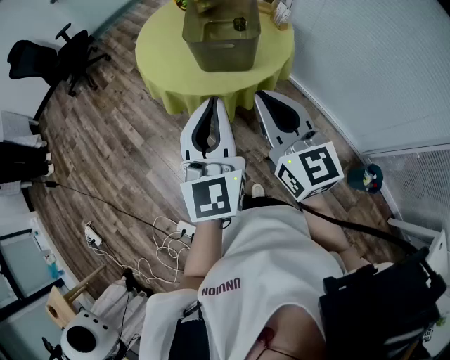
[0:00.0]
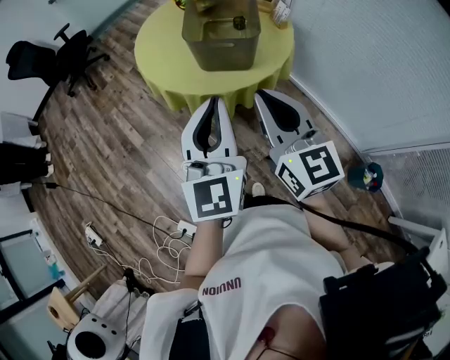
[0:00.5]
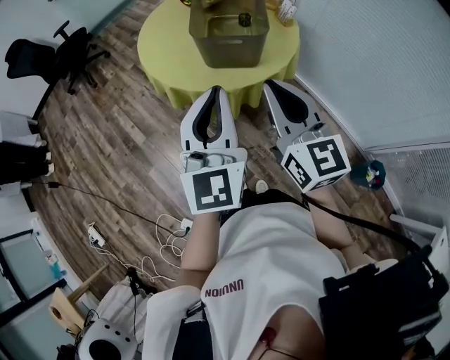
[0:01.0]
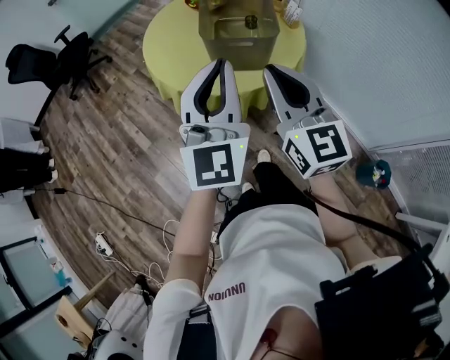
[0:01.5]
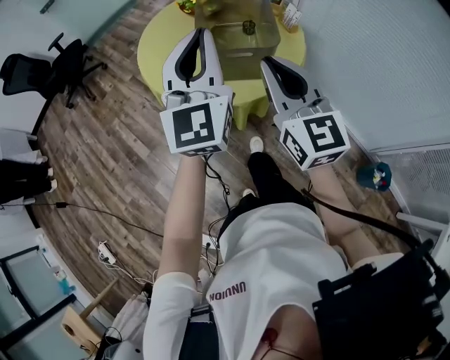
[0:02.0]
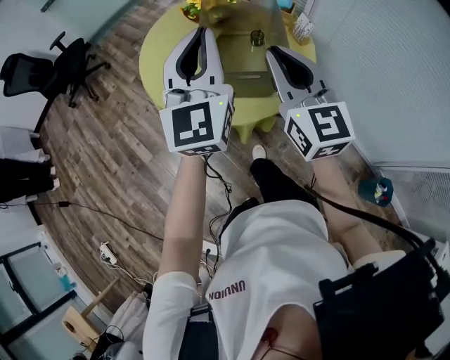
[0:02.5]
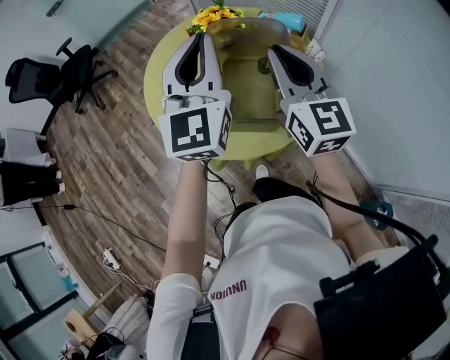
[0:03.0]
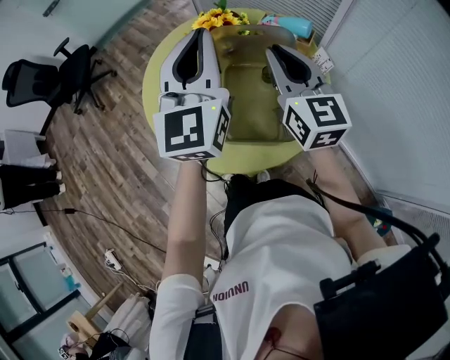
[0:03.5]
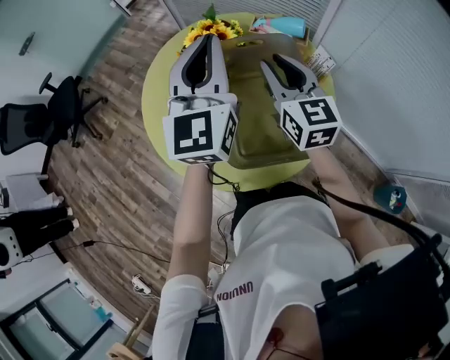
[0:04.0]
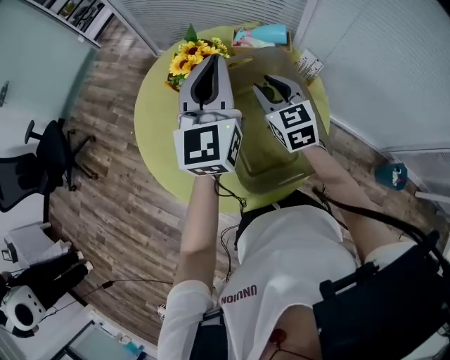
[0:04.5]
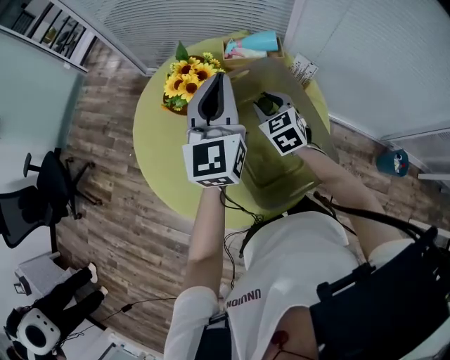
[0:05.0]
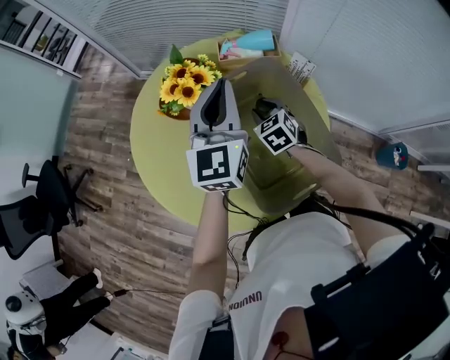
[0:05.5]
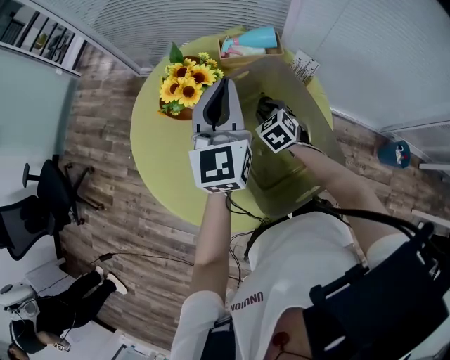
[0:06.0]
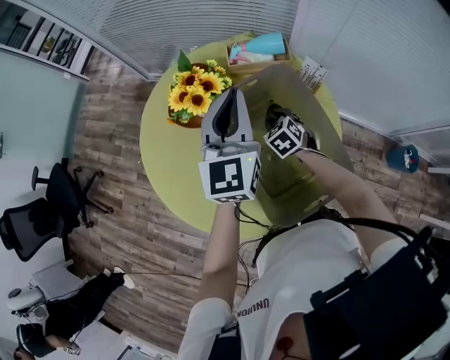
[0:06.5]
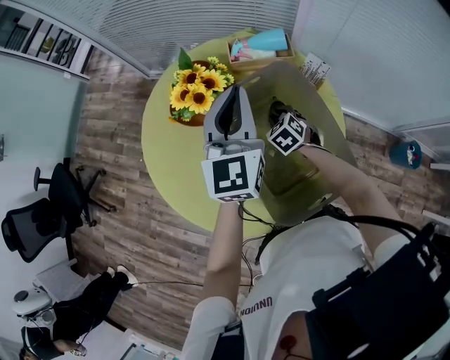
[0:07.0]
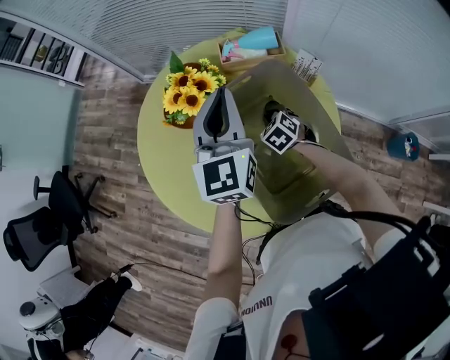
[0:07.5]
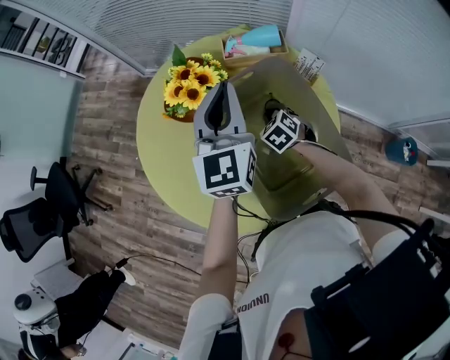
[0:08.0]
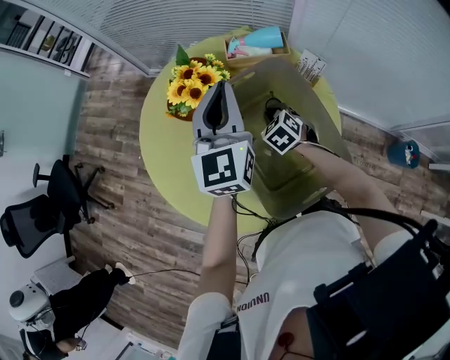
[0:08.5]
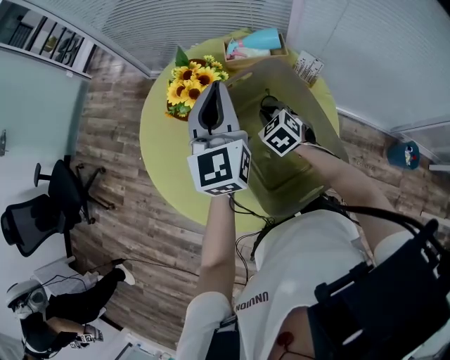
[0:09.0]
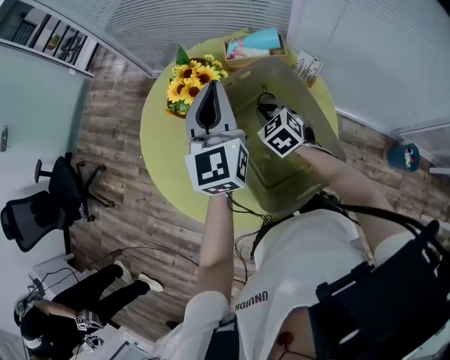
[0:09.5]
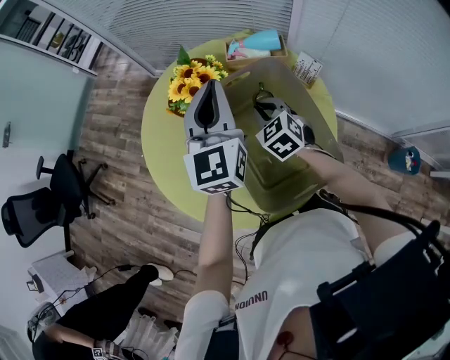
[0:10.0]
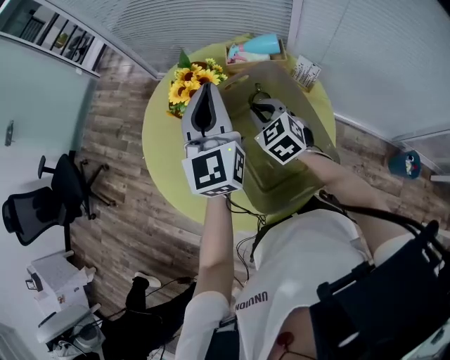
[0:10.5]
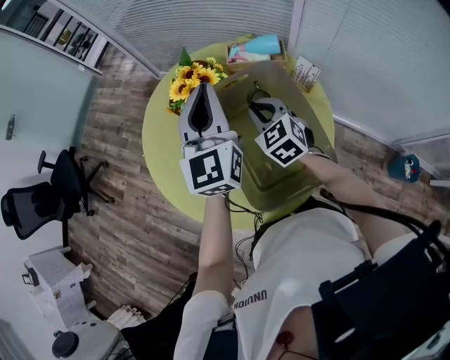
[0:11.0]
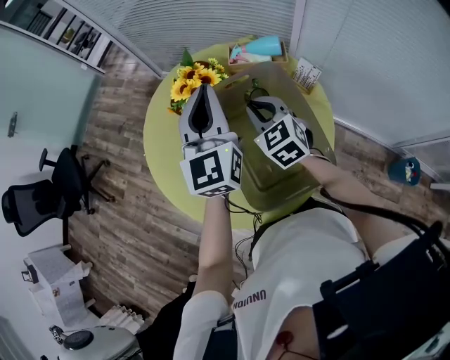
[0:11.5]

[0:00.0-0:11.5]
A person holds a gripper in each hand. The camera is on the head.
0.0 to 2.0 s: Both grippers travel together forward, roughly 15 cm.
2.0 to 4.0 s: Both grippers travel together forward, approximately 30 cm. The right gripper opens up.
4.0 to 6.0 s: The right gripper moves downward, approximately 25 cm, and tips its fingers downward by approximately 40 degrees. The left gripper is displaced downward and forward by roughly 10 cm, and turns by some 20 degrees.
6.0 to 7.5 s: The grippers make only small movements.
7.5 to 9.5 s: The right gripper moves upward, some 10 cm.
9.5 to 11.5 s: The right gripper travels upward by some 10 cm.

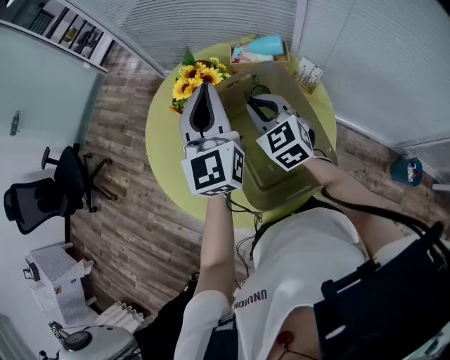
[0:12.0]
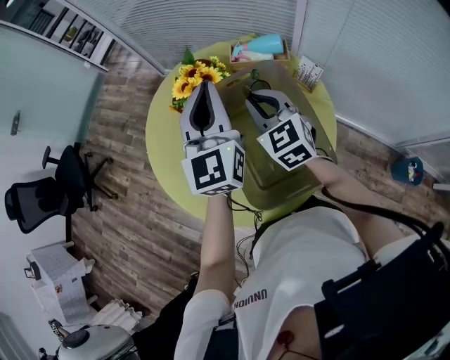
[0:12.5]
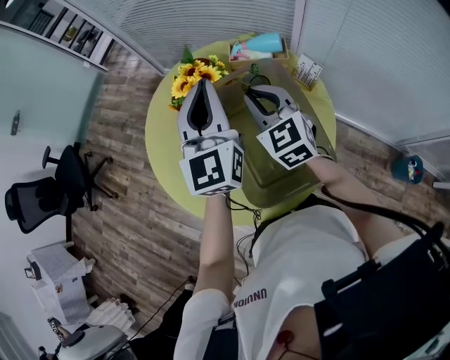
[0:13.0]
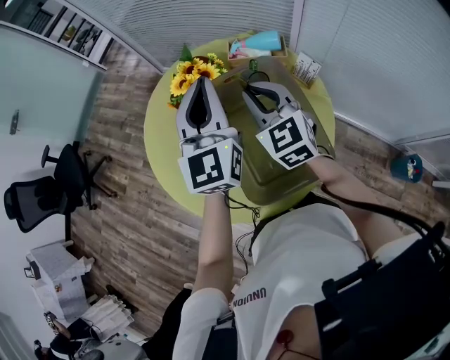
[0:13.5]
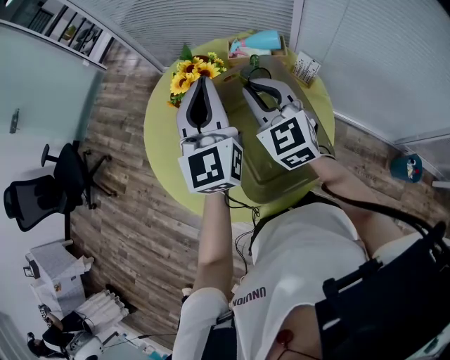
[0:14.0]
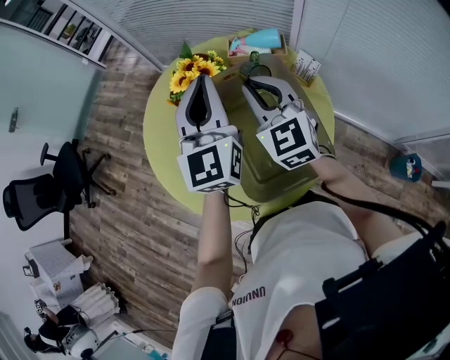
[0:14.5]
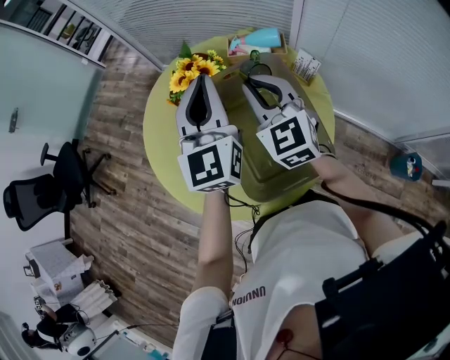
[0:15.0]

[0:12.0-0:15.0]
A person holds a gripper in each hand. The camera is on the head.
12.0 to 13.5 s: The right gripper goes approximately 5 cm upward.
13.5 to 15.0 s: There are only small adjustments of the grippers.

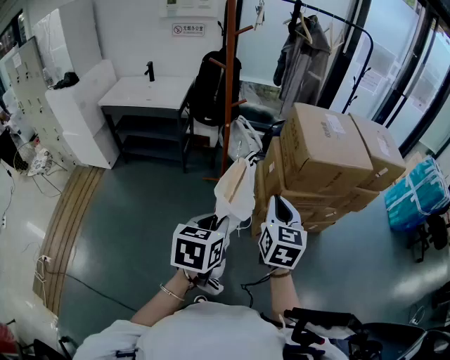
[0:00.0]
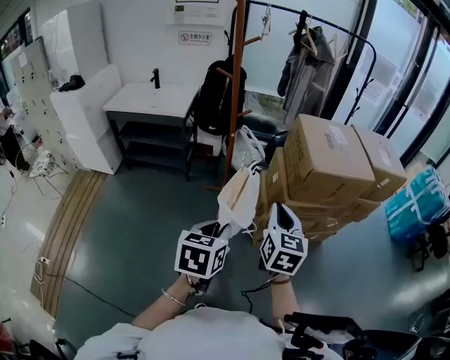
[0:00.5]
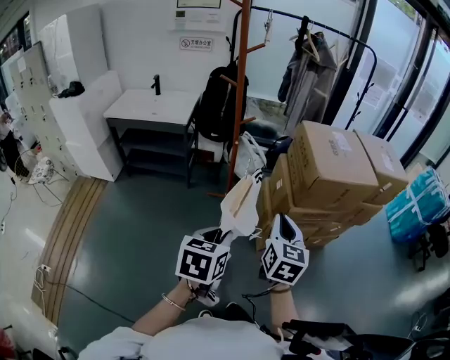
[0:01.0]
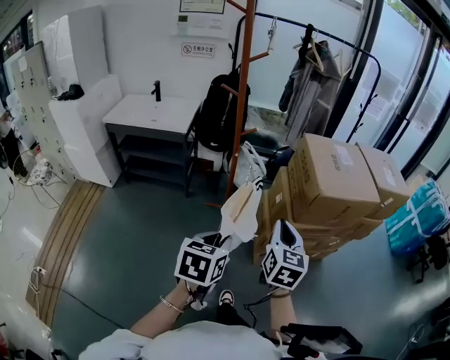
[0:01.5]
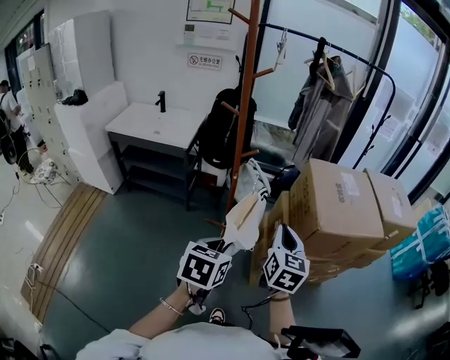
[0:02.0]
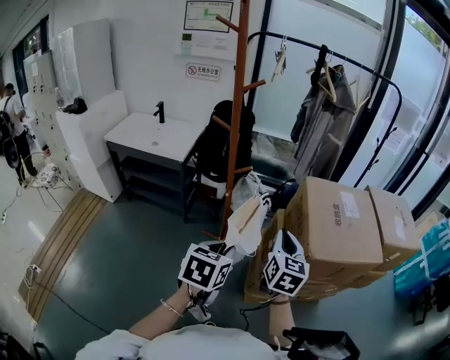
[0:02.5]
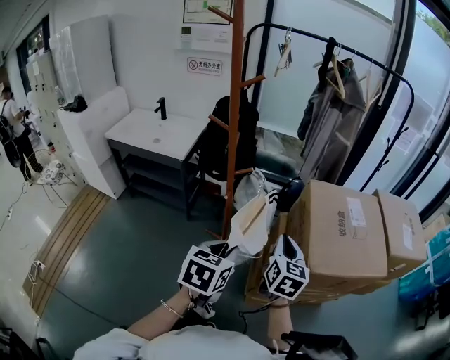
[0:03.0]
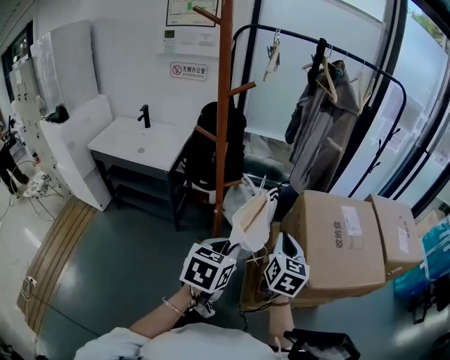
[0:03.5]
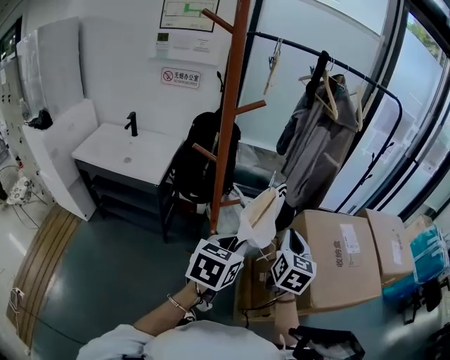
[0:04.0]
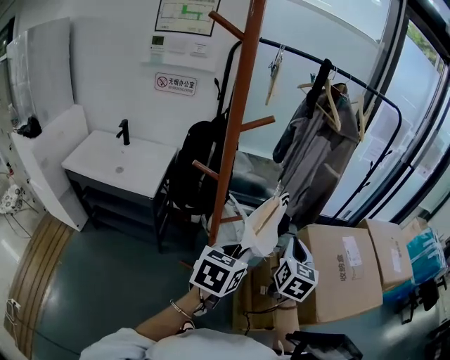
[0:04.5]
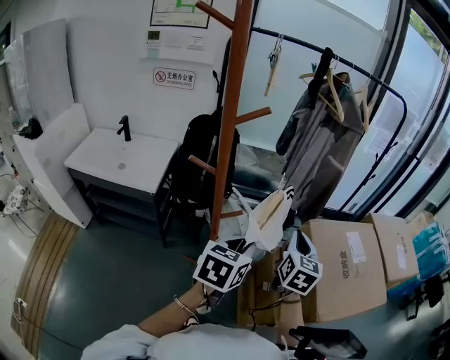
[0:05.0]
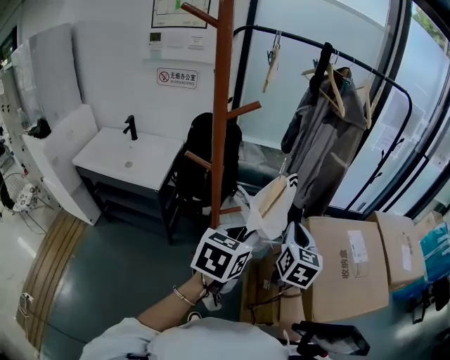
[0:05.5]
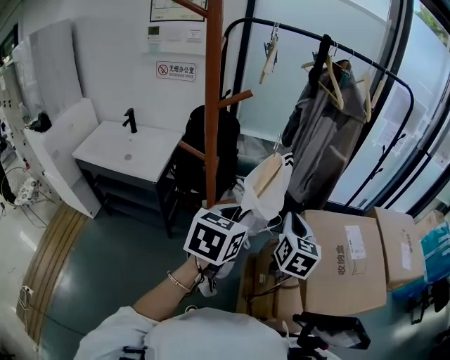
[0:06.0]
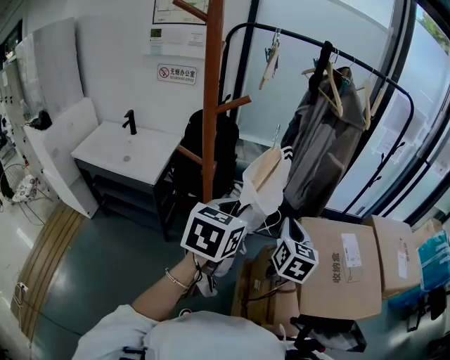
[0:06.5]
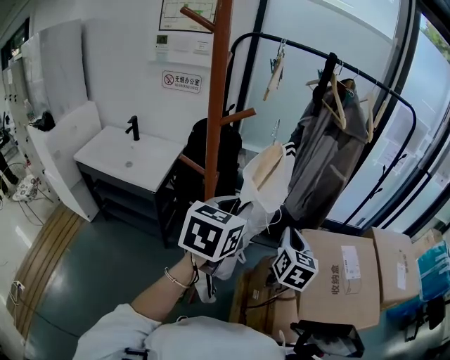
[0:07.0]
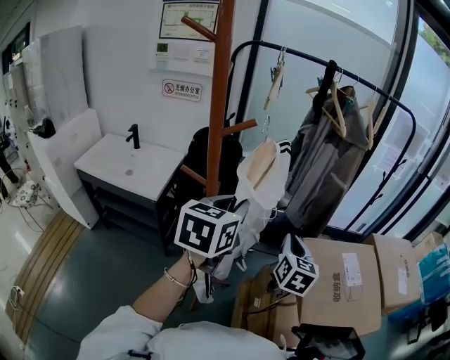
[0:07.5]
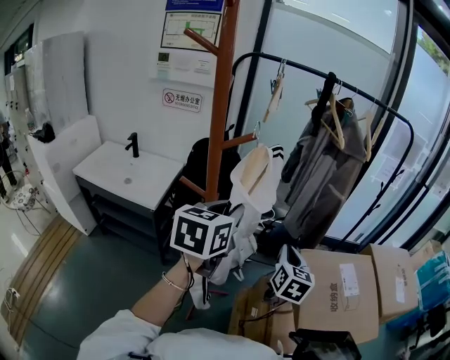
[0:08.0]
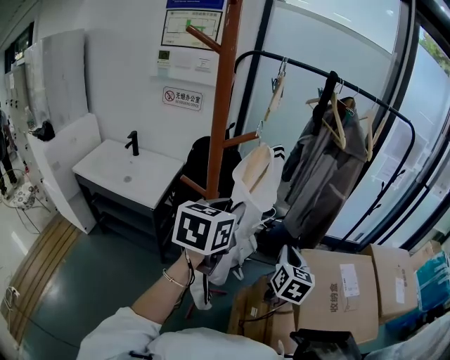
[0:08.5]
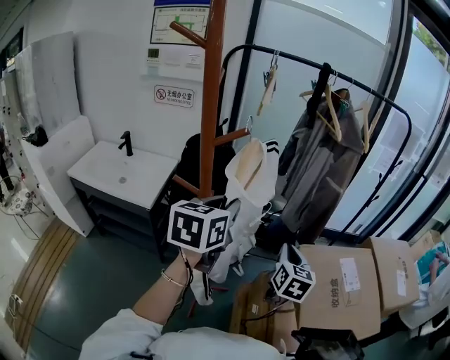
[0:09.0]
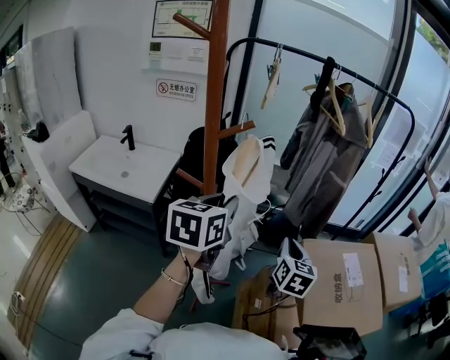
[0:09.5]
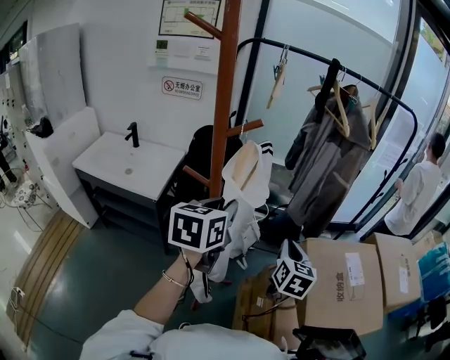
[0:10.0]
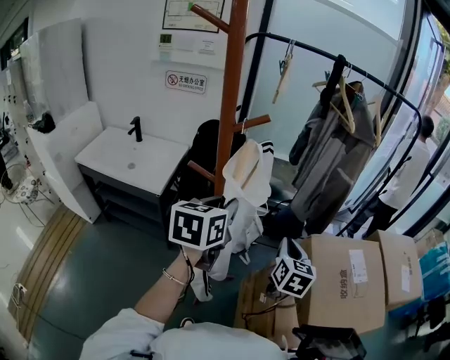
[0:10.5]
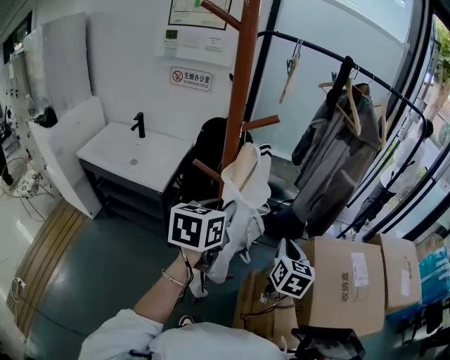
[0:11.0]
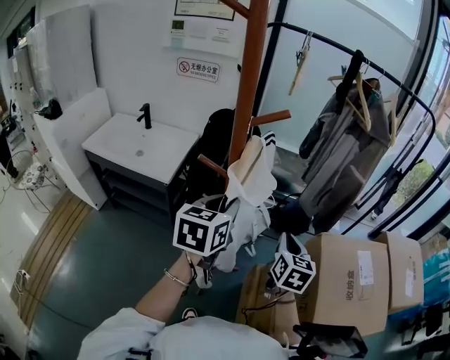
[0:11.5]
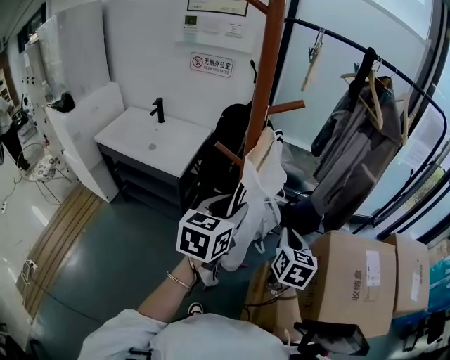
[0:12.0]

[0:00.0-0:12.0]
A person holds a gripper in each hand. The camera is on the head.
0.0 to 2.0 s: The two grippers go some 15 cm forward.
2.0 to 4.0 s: Both grippers travel together forward, approximately 25 cm.
4.0 to 6.0 s: Both grippers move forward, some 10 cm.
6.0 to 8.0 s: The left gripper travels upward, to the left and forward by roughly 10 cm.
8.0 to 10.0 s: The grippers stay close to where they were, moving slightly.
10.0 to 12.0 s: The left gripper heads downward, covering some 5 cm; the right gripper moves to the left, about 5 cm.

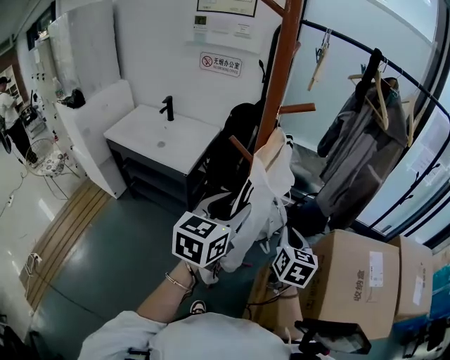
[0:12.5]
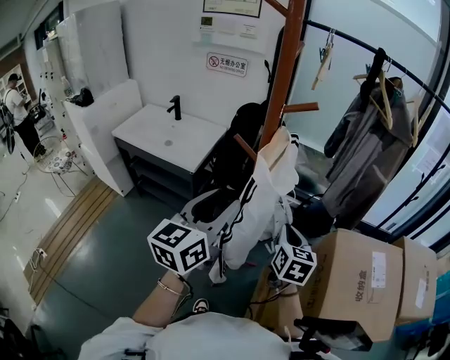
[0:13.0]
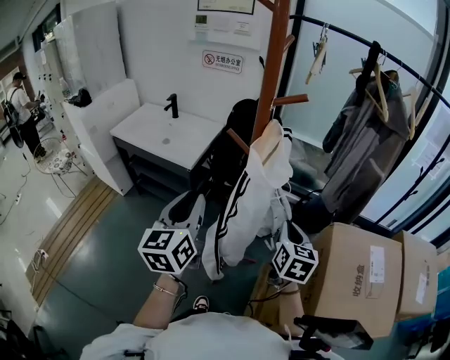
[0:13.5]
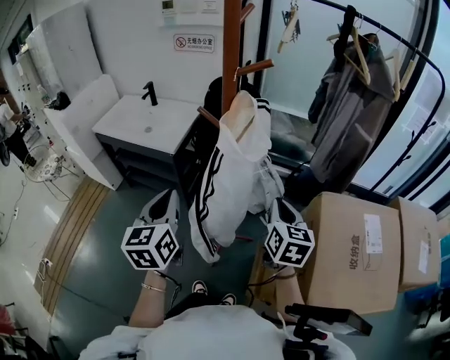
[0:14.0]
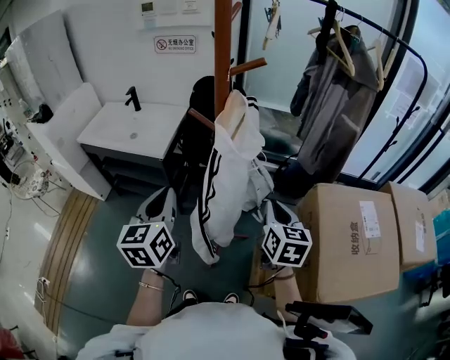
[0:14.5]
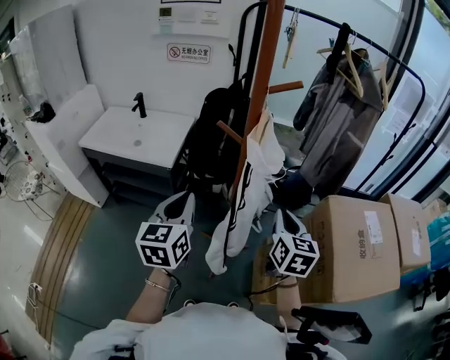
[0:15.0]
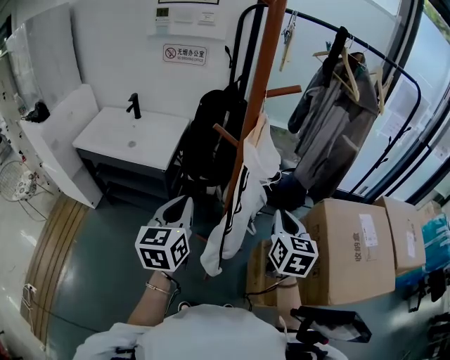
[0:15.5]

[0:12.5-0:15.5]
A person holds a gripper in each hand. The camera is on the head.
12.5 to 14.0 s: The left gripper travels to the left and backward by roughly 10 cm, swivels roughly 30 degrees, and closes.
14.0 to 15.5 s: The grippers make only small movements.
